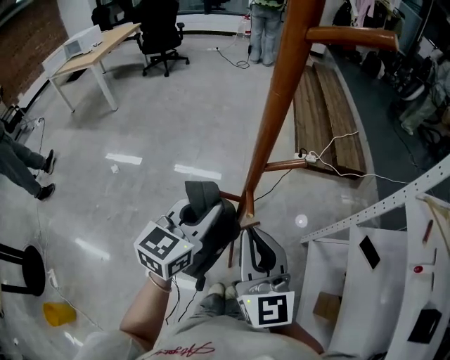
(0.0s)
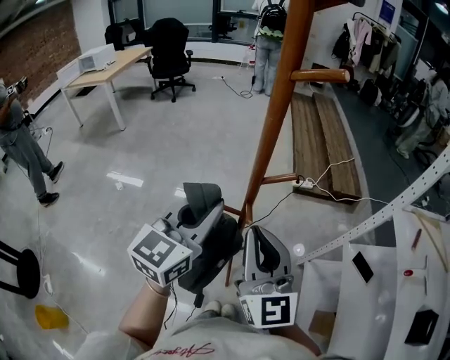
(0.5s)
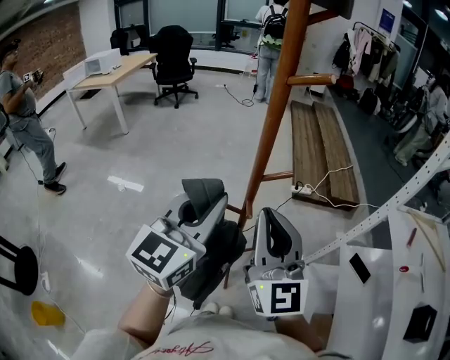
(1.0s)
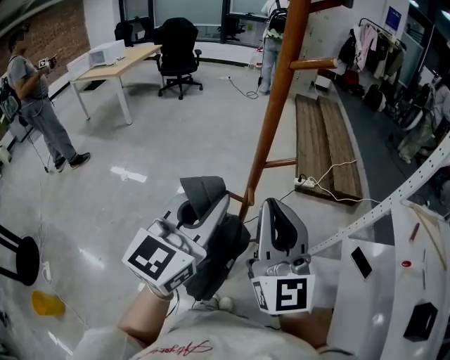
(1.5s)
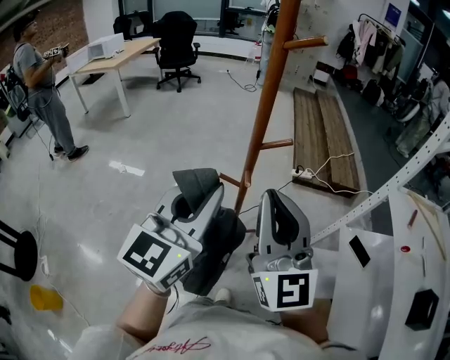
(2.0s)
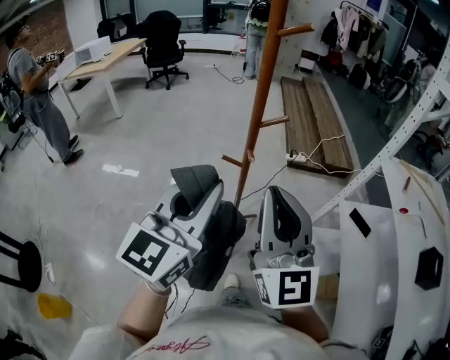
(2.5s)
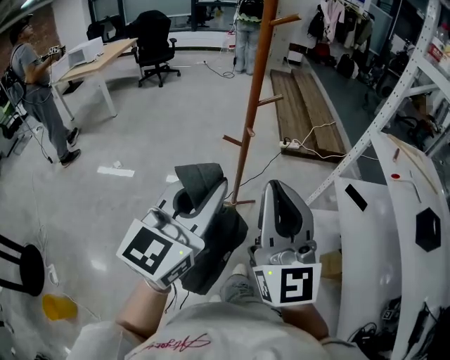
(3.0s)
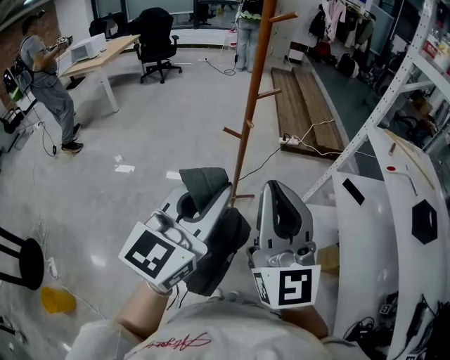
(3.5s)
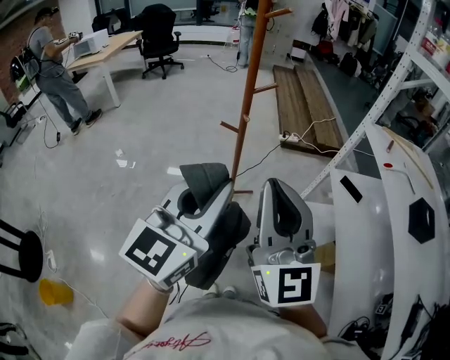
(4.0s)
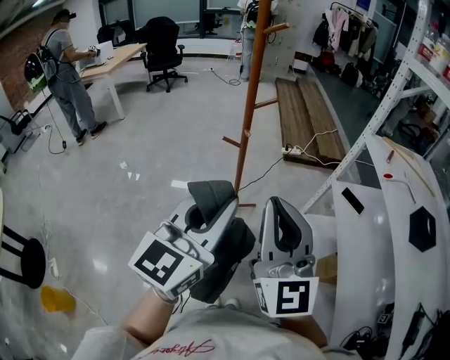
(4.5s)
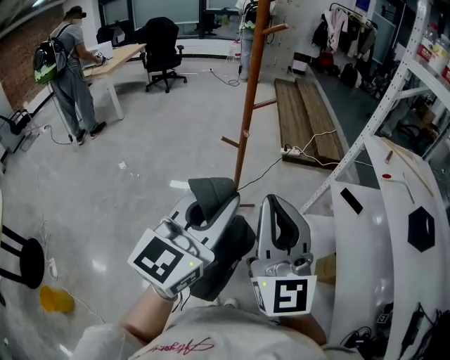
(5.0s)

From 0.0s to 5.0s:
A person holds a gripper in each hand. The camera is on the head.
From 0.0s to 2.5s: Both grippers move backward and upward, roughly 20 cm.
From 2.5s to 5.0s: The left gripper is displaced backward and to the right by about 15 cm. Meanwhile the right gripper shifts approximately 15 cm backward.

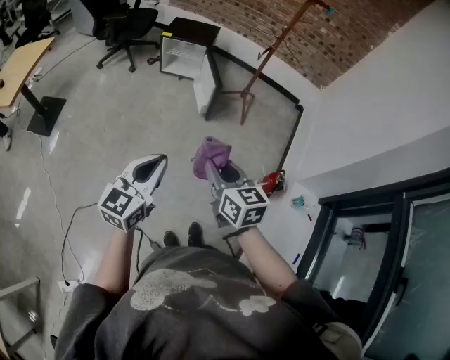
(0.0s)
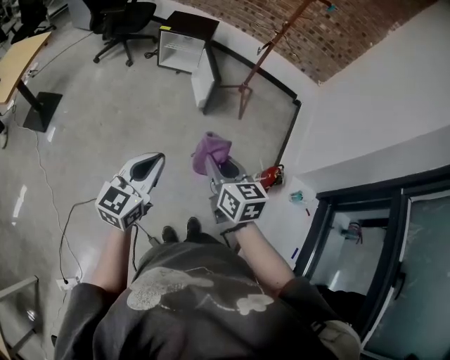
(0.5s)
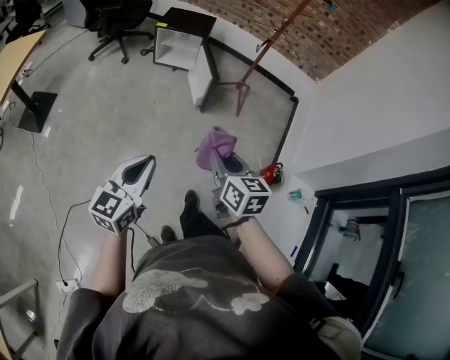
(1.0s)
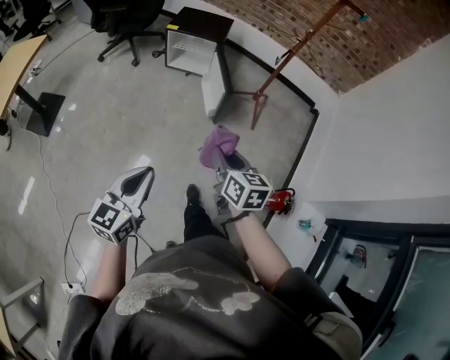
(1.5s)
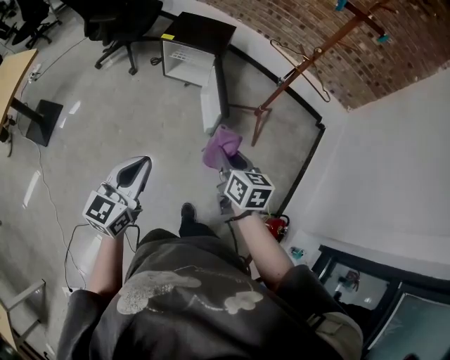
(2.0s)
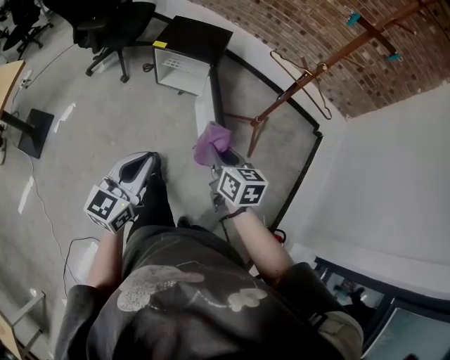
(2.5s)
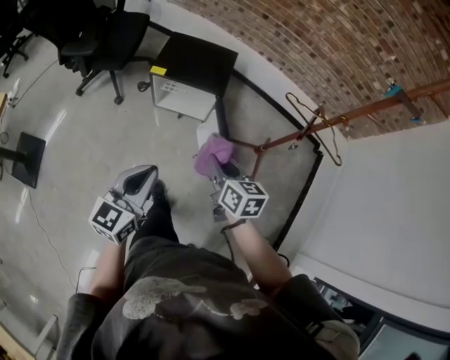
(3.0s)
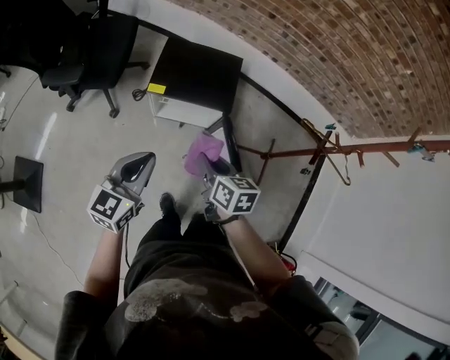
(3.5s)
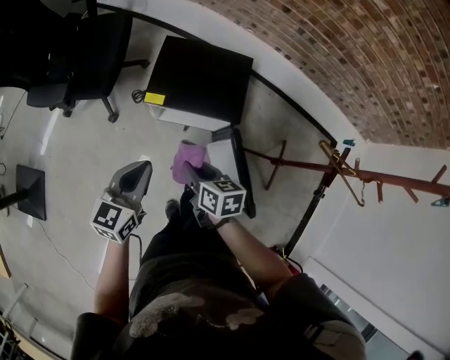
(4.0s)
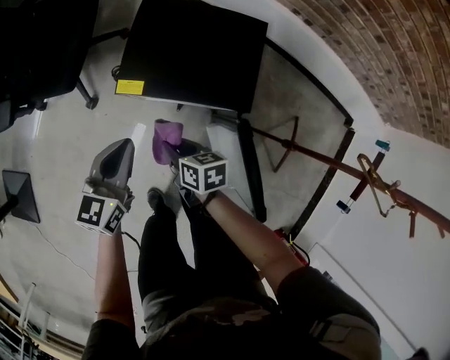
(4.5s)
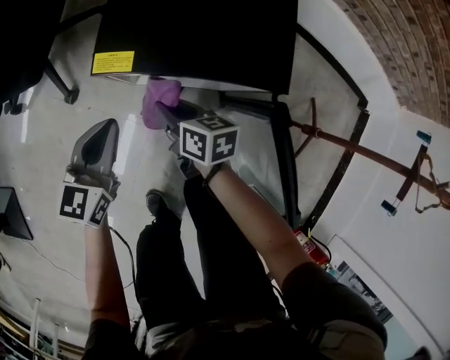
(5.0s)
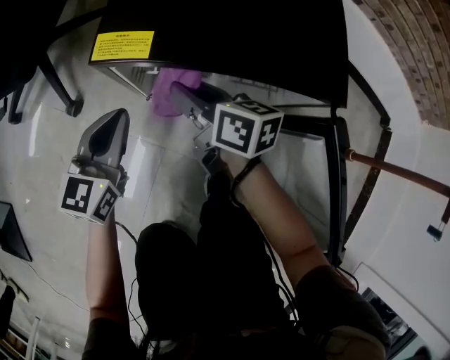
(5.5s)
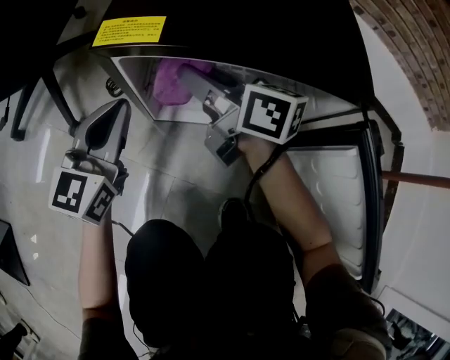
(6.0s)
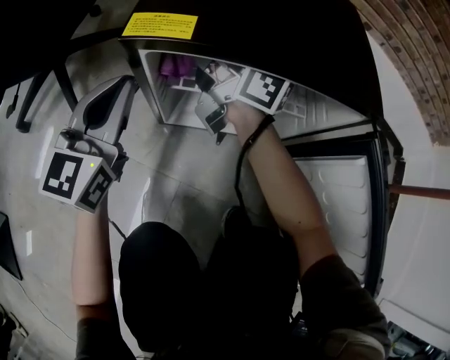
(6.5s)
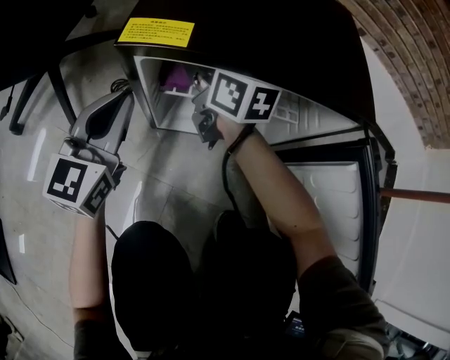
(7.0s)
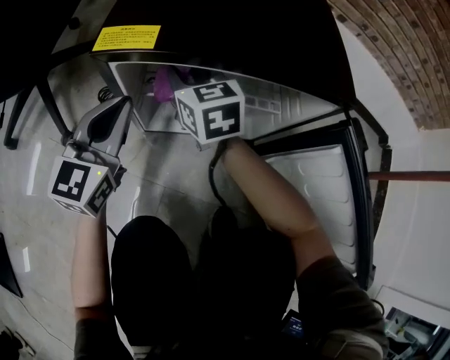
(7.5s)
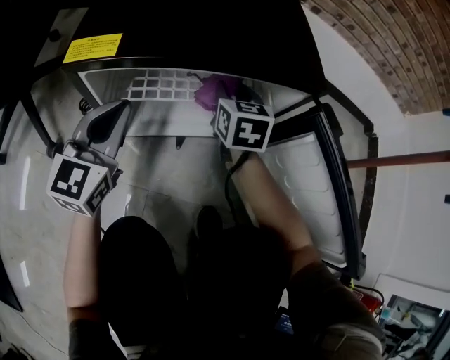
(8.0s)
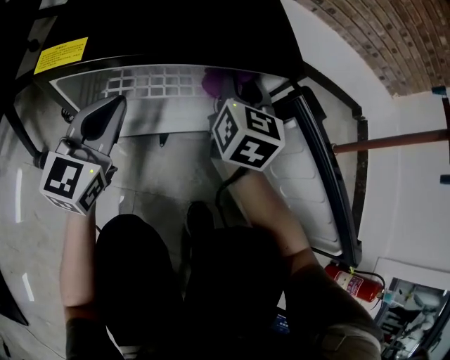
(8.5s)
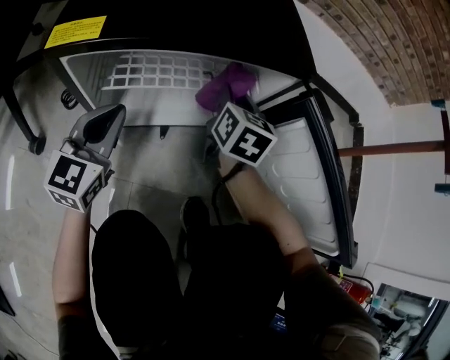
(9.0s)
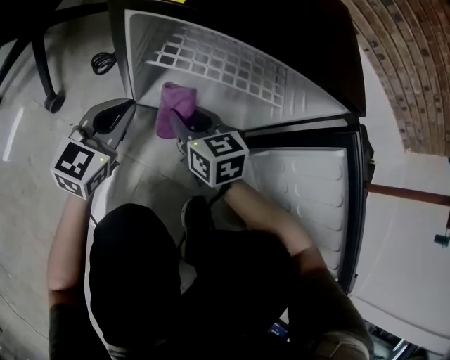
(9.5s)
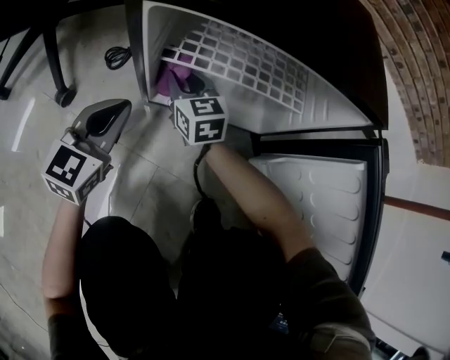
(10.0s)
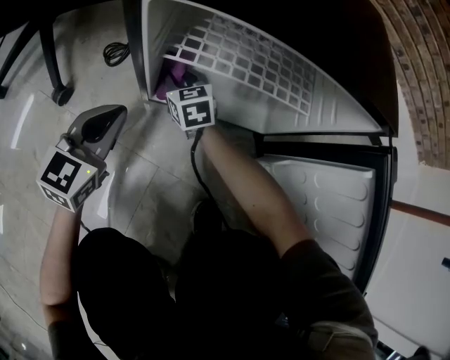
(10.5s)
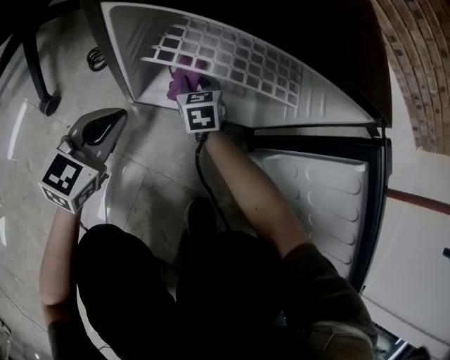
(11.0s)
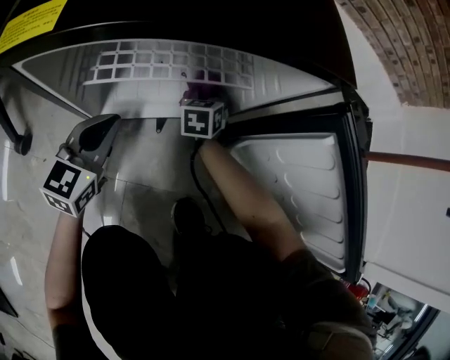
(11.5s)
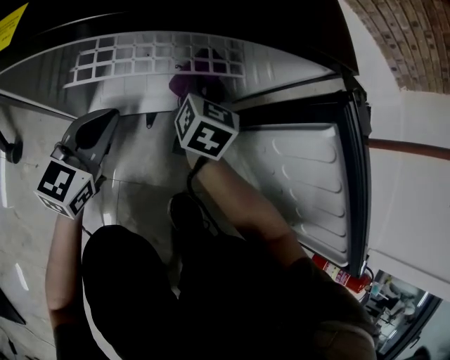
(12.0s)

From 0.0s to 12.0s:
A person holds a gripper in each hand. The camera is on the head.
From 0.0s to 2.0s: Both grippers travel together forward, approximately 35 cm.
From 2.0s to 4.0s: The two grippers travel together, forward and to the left, roughly 60 cm.
From 4.0s to 6.0s: Both grippers travel together downward and forward, some 40 cm. The right gripper angles its fingers upward, by some 30 degrees.
From 6.0s to 8.0s: The right gripper shifts by some 20 cm, and changes its angle by some 60 degrees. The left gripper changes place by some 5 cm.
From 8.0s to 10.0s: The right gripper changes place by about 25 cm, and changes its angle by some 30 degrees. The left gripper shifts approximately 10 cm downward.
From 10.0s to 12.0s: The right gripper reaches roughly 10 cm downward, then returns, and turns by roughly 50 degrees. The left gripper shifts by about 15 cm.

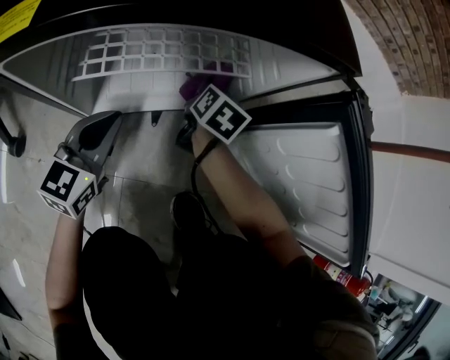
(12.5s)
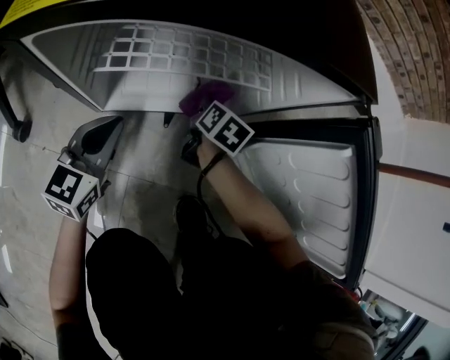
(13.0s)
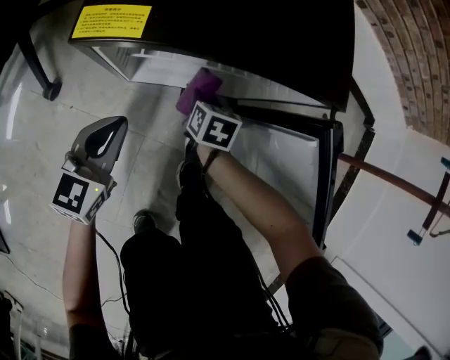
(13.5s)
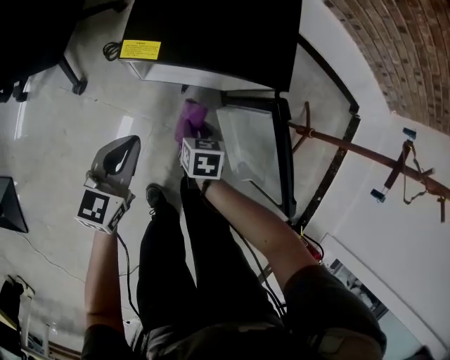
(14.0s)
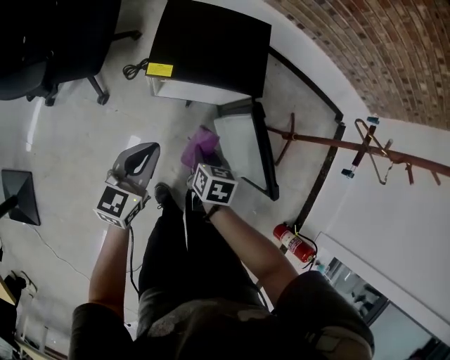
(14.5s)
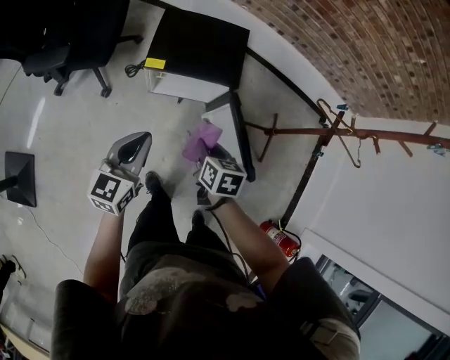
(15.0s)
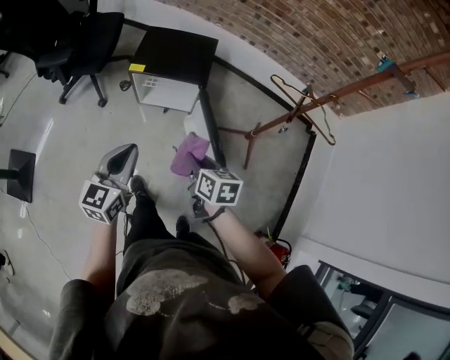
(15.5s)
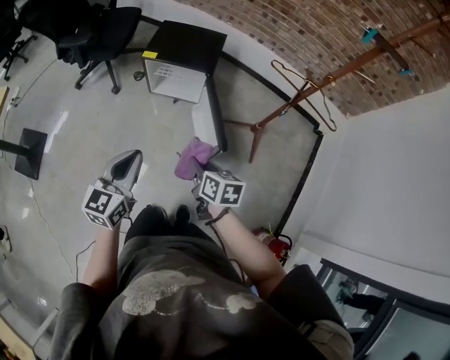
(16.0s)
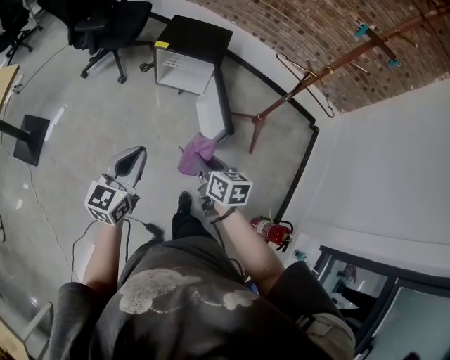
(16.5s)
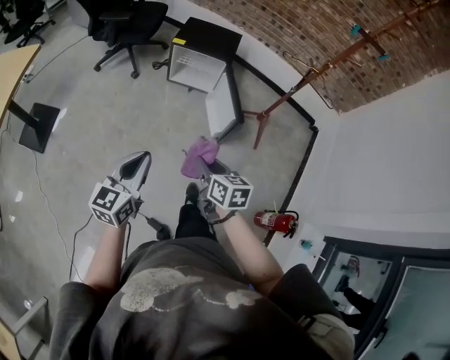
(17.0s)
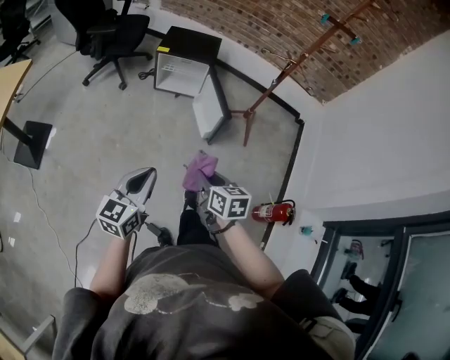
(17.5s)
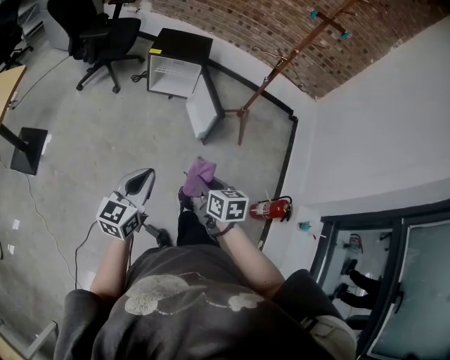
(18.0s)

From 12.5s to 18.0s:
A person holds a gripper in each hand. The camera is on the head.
From 12.5s to 14.5s: The two grippers go about 50 cm upward and backward. The right gripper turns by some 30 degrees.
From 14.5s to 16.0s: Both grippers move backward, upward and to the right, roughly 40 cm. The right gripper changes its angle by some 30 degrees.
From 16.0s to 18.0s: Both grippers move backward, some 30 cm.

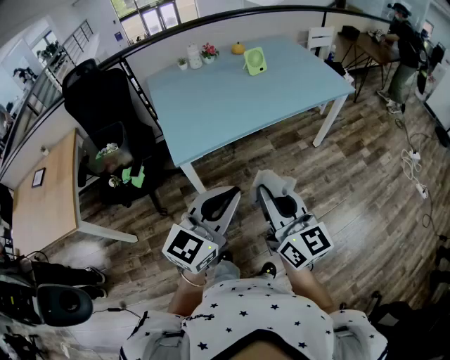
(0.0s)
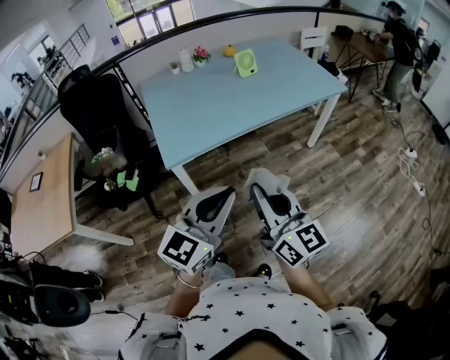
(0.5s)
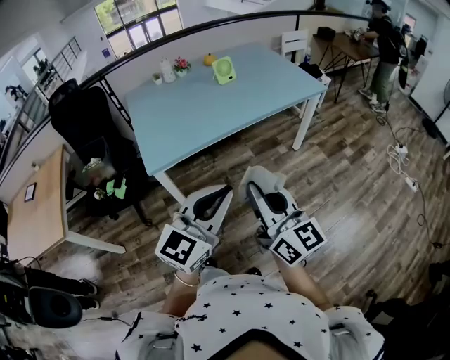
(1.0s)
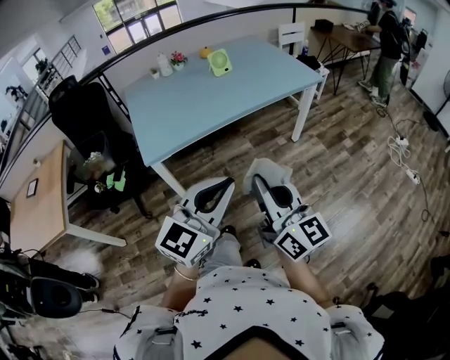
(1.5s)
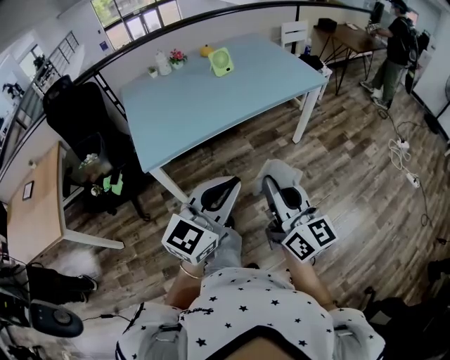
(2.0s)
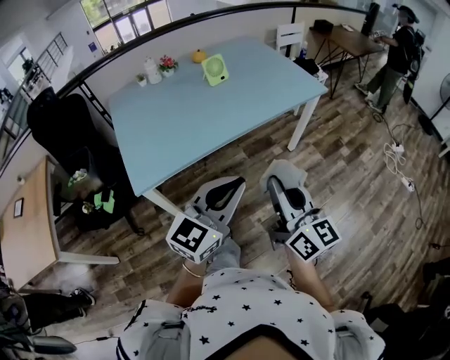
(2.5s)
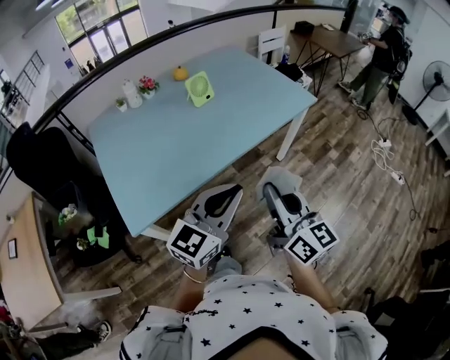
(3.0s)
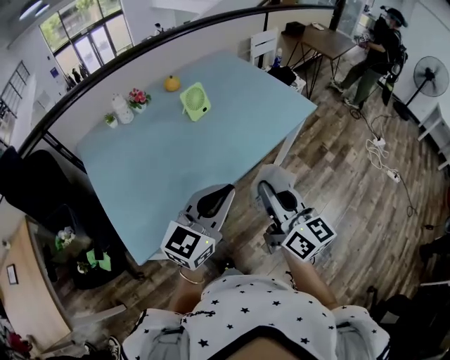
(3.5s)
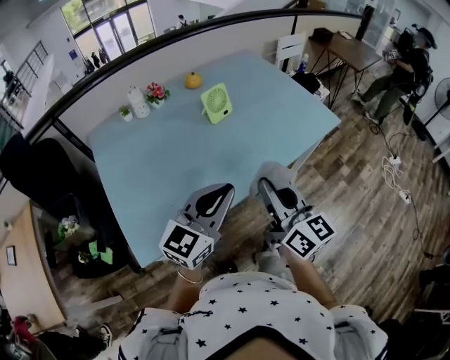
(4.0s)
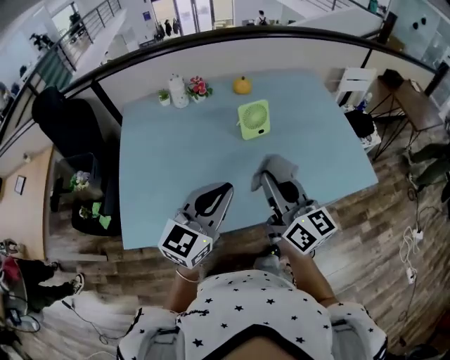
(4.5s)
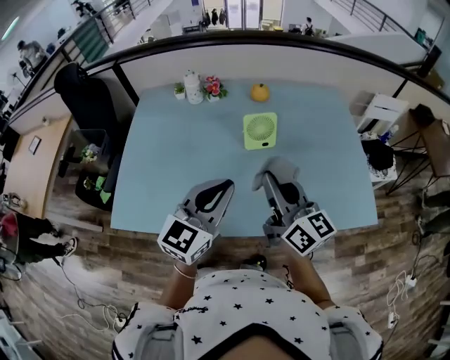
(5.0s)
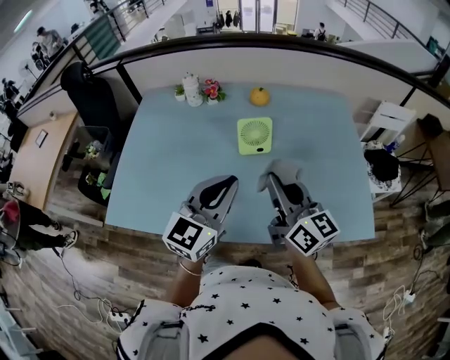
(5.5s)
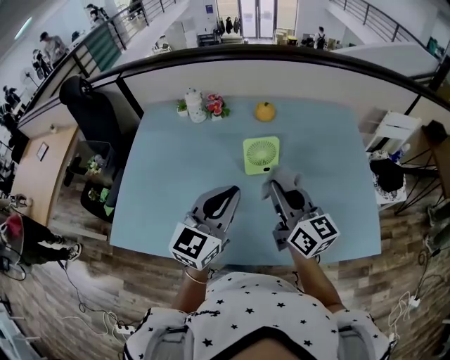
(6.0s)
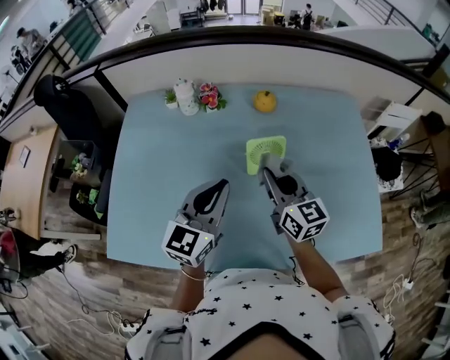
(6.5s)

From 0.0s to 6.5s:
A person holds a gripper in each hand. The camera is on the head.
From 0.0s to 2.0s: The two grippers go roughly 15 cm to the right.
From 2.0s to 4.5s: The two grippers travel together, approximately 50 cm. The right gripper swivels approximately 20 degrees.
From 4.5s to 6.5s: The grippers both shift forward by approximately 20 cm. The right gripper turns by some 20 degrees.
